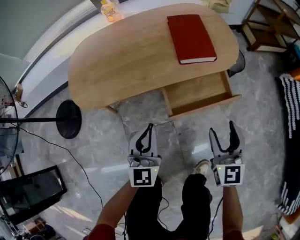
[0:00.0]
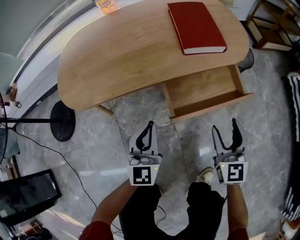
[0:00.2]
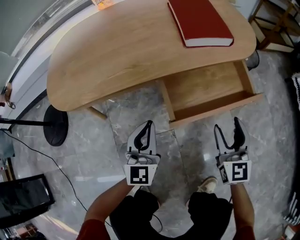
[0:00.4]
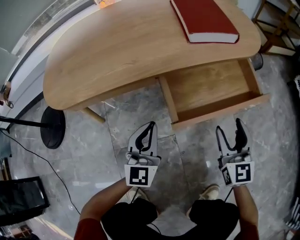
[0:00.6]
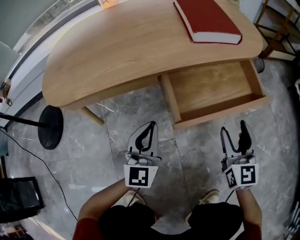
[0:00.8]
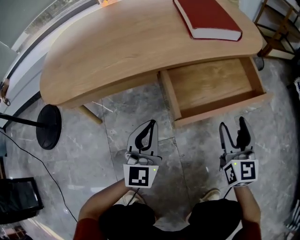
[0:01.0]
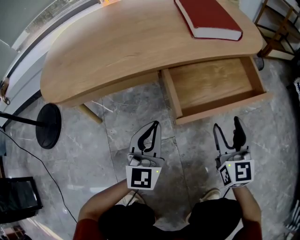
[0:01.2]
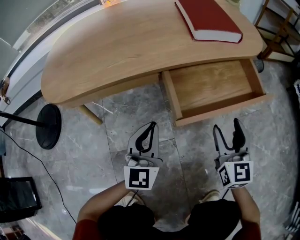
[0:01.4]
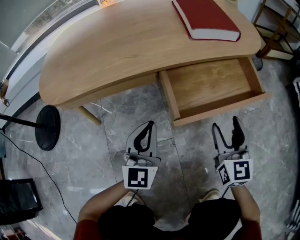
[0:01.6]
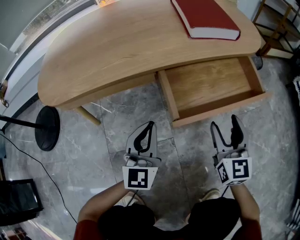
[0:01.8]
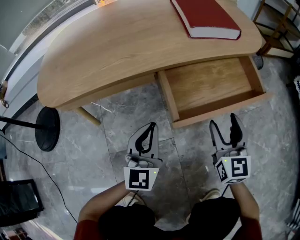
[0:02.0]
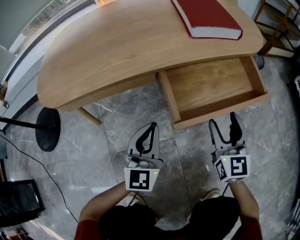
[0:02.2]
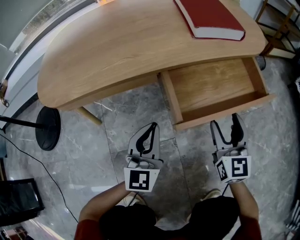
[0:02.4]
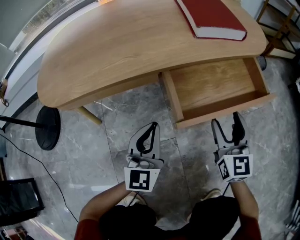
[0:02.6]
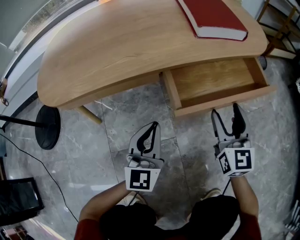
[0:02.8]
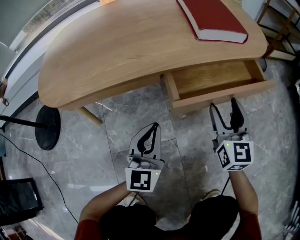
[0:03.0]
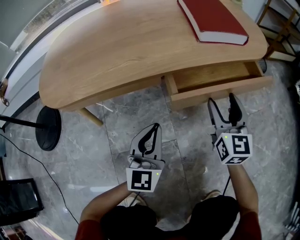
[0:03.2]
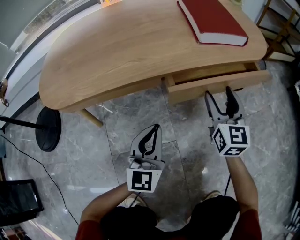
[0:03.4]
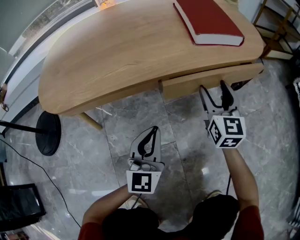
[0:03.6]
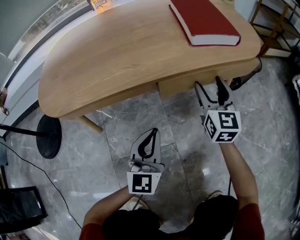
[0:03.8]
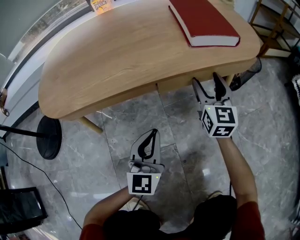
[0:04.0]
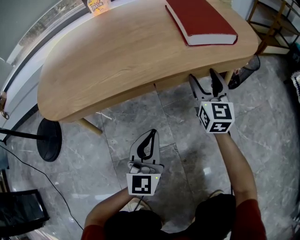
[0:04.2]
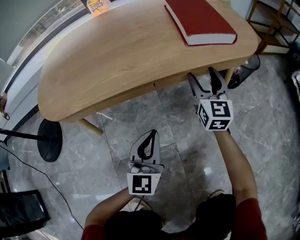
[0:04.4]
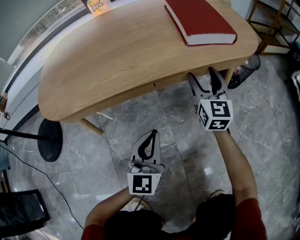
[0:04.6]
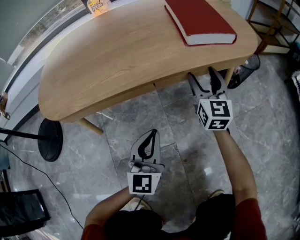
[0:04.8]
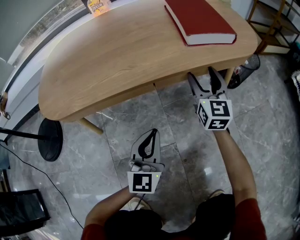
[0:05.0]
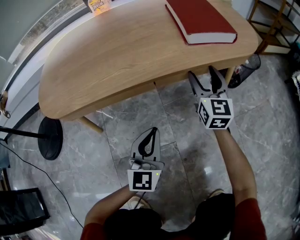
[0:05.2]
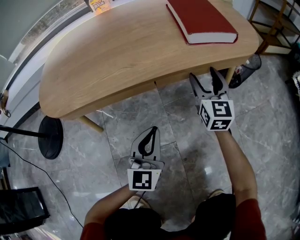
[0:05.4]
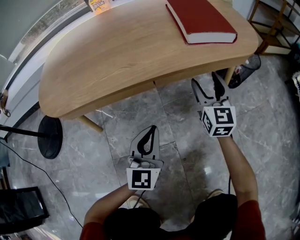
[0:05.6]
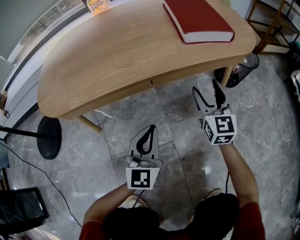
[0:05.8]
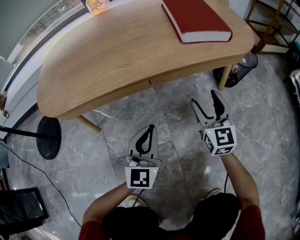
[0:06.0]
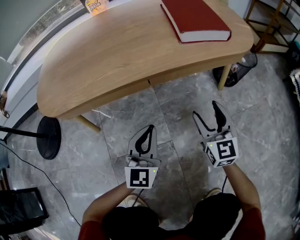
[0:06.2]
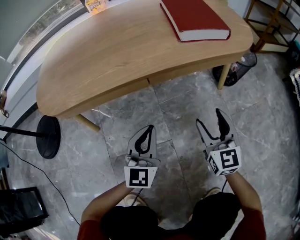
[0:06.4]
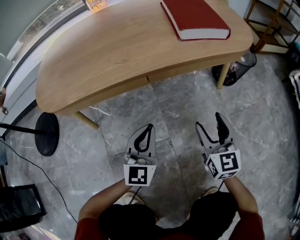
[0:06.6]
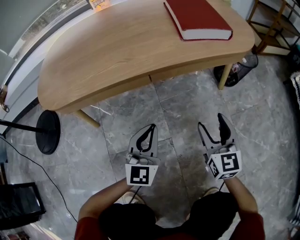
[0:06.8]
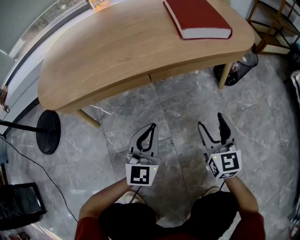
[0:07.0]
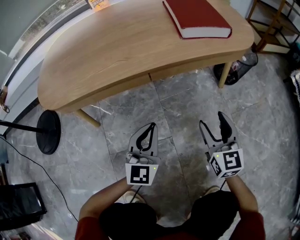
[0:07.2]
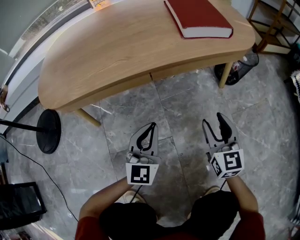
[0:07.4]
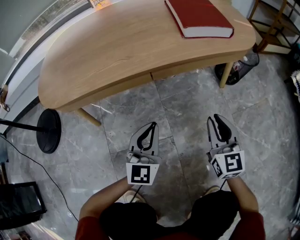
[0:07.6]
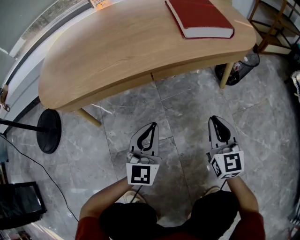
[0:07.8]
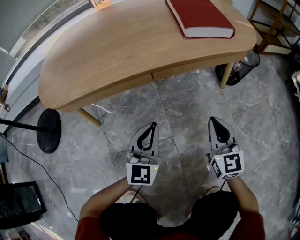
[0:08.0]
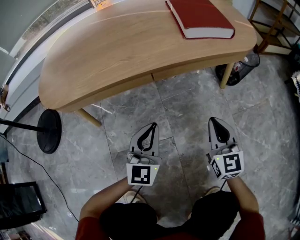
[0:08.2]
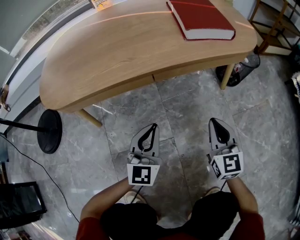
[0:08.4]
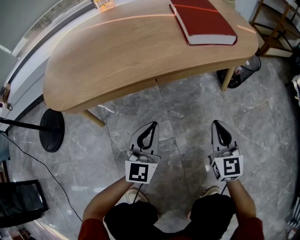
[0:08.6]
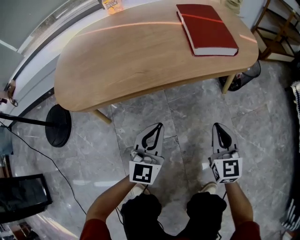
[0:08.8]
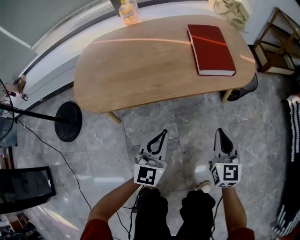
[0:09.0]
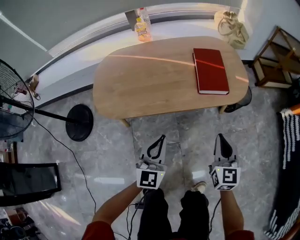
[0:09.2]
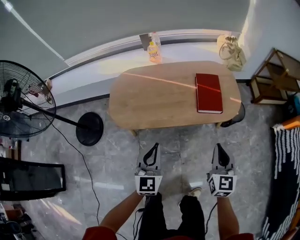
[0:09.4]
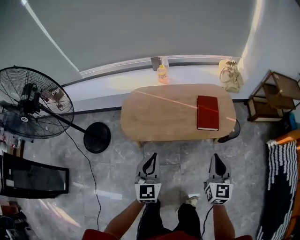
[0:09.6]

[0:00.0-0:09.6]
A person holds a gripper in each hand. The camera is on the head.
0:00.0 to 0:01.6: Both grippers move downward, some 25 cm.
0:01.6 to 0:03.2: The right gripper is displaced forward by approximately 10 cm.
0:03.2 to 0:04.8: The right gripper goes approximately 10 cm forward.
0:04.8 to 0:06.4: The right gripper travels backward by roughly 15 cm.
0:06.4 to 0:08.0: The right gripper closes.
0:08.0 to 0:09.6: The grippers both shift upward by some 60 cm. The left gripper changes its angle by about 20 degrees.

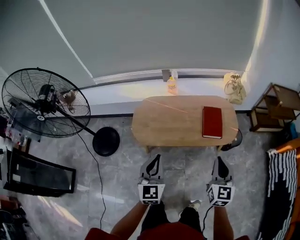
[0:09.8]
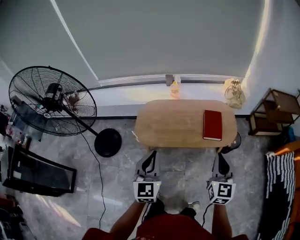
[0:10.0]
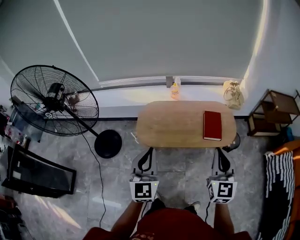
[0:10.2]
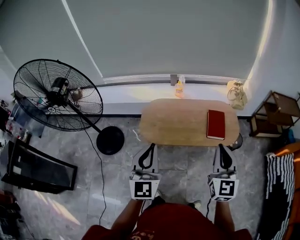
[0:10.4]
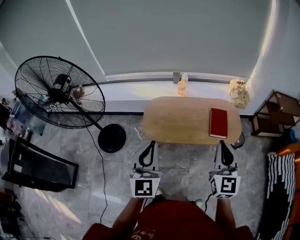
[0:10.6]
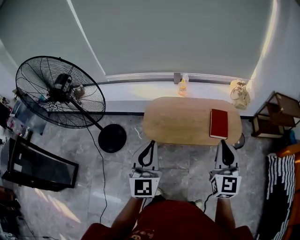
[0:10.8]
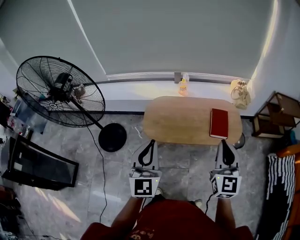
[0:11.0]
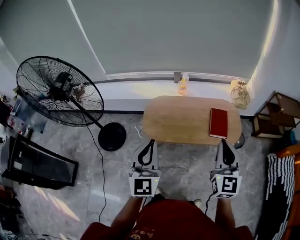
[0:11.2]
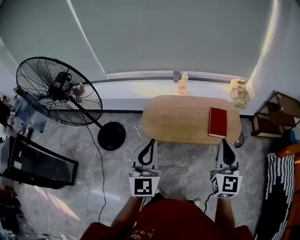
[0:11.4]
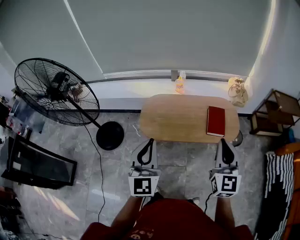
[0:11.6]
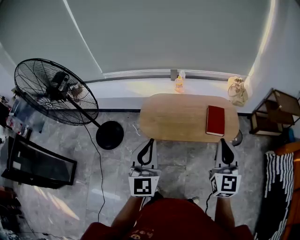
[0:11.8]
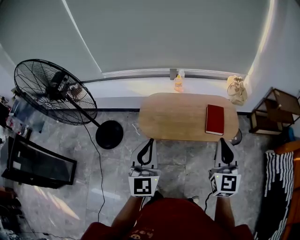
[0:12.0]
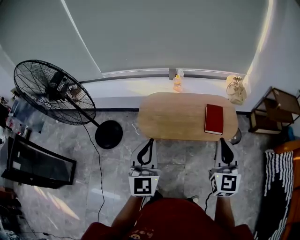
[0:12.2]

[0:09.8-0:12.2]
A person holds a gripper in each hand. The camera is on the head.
0:09.8 to 0:11.0: Both grippers travel together upward and to the left, approximately 15 cm.
0:11.0 to 0:12.2: The grippers move only a little.

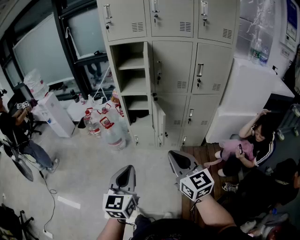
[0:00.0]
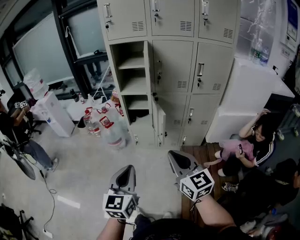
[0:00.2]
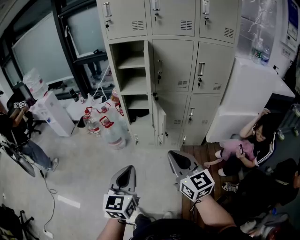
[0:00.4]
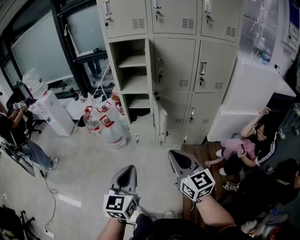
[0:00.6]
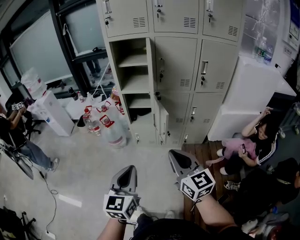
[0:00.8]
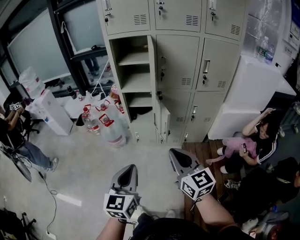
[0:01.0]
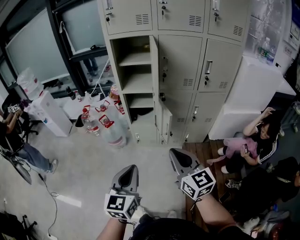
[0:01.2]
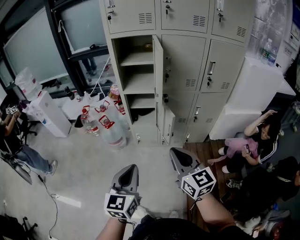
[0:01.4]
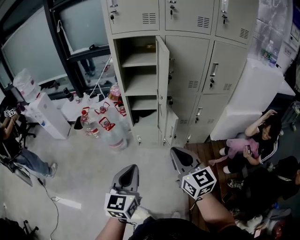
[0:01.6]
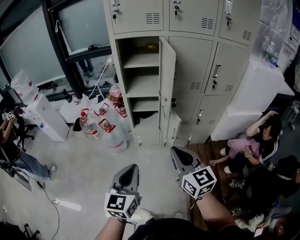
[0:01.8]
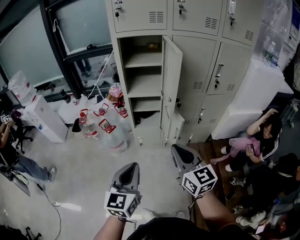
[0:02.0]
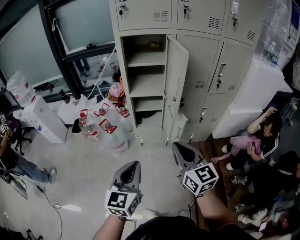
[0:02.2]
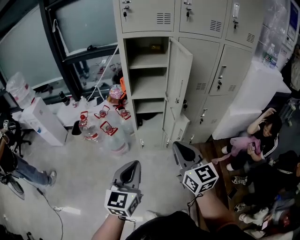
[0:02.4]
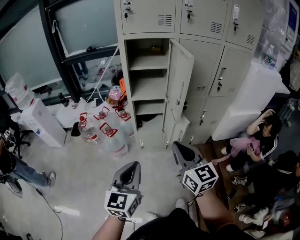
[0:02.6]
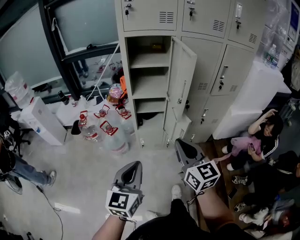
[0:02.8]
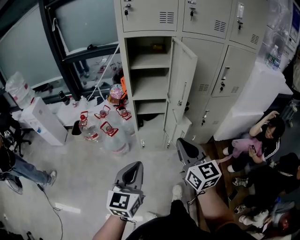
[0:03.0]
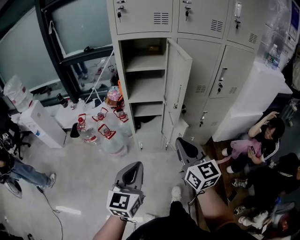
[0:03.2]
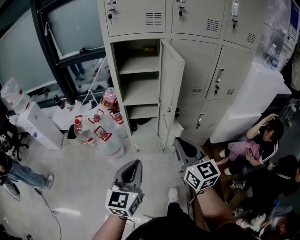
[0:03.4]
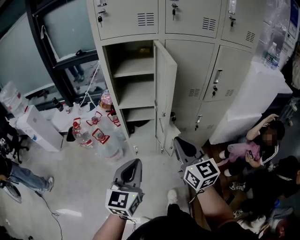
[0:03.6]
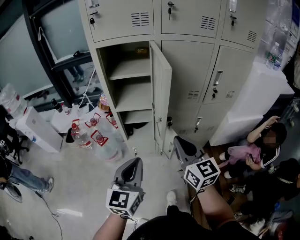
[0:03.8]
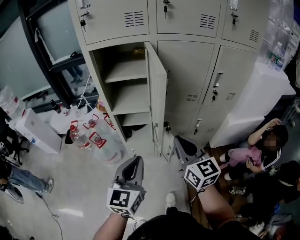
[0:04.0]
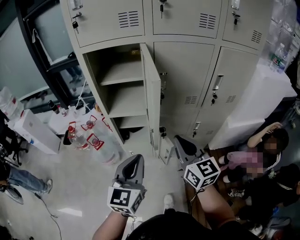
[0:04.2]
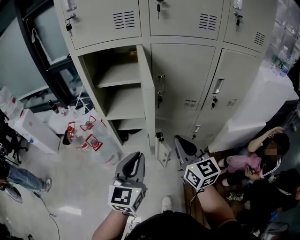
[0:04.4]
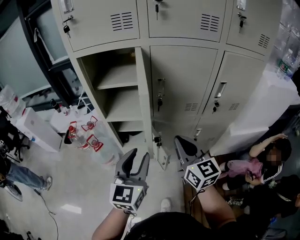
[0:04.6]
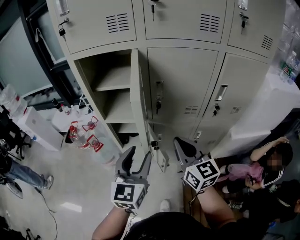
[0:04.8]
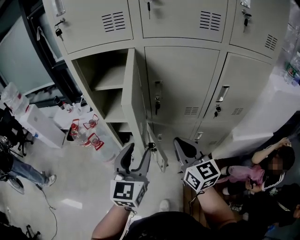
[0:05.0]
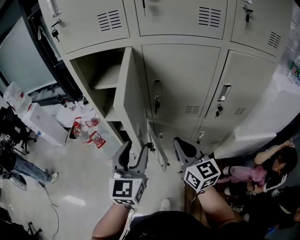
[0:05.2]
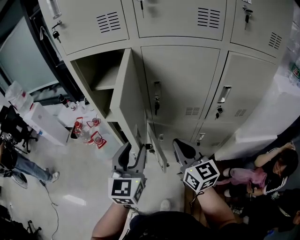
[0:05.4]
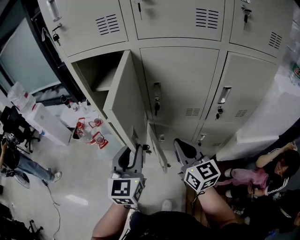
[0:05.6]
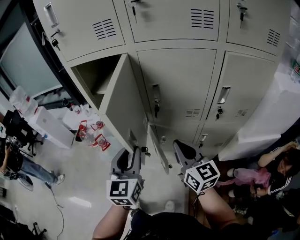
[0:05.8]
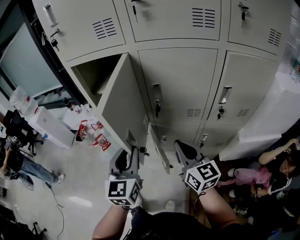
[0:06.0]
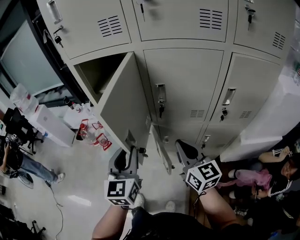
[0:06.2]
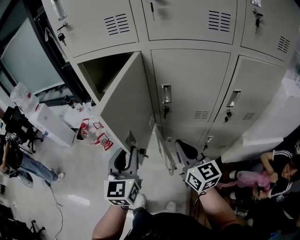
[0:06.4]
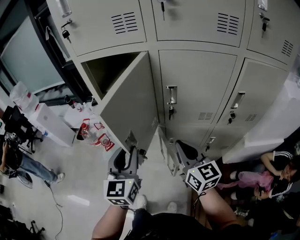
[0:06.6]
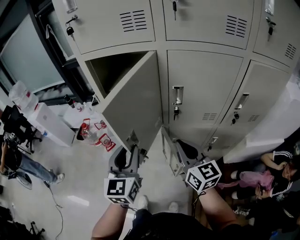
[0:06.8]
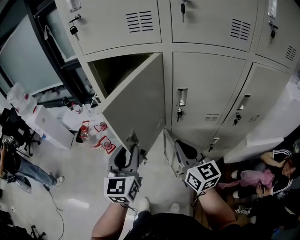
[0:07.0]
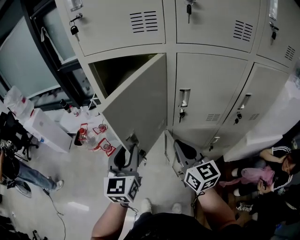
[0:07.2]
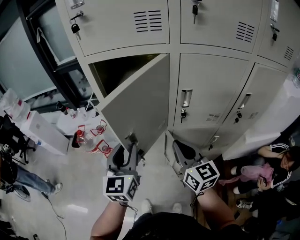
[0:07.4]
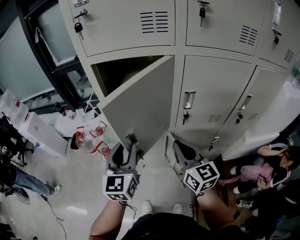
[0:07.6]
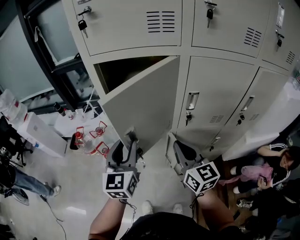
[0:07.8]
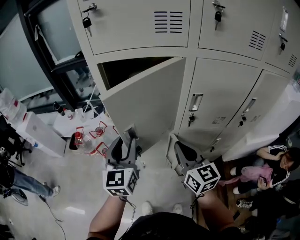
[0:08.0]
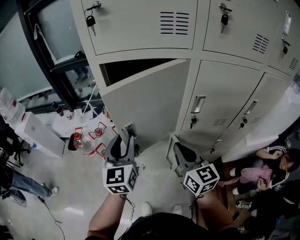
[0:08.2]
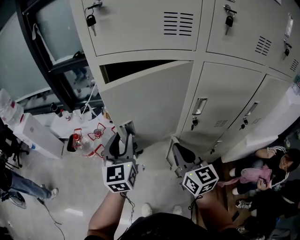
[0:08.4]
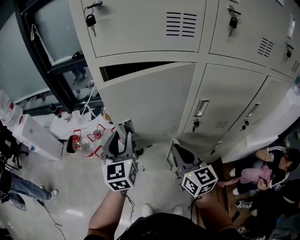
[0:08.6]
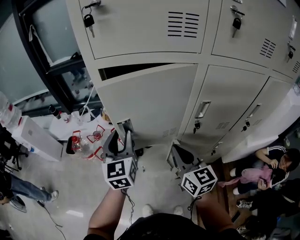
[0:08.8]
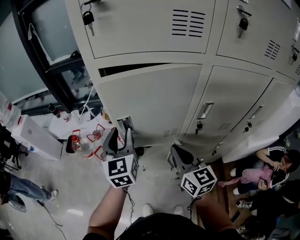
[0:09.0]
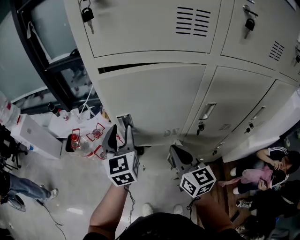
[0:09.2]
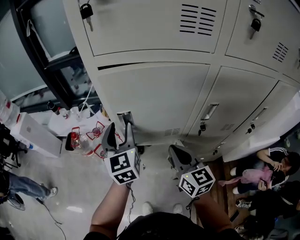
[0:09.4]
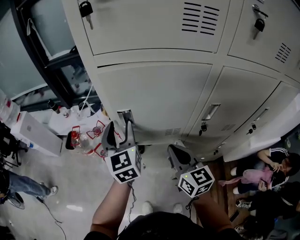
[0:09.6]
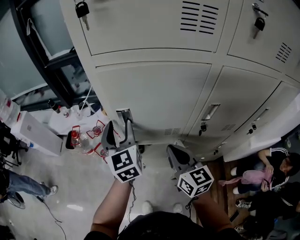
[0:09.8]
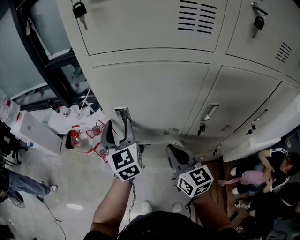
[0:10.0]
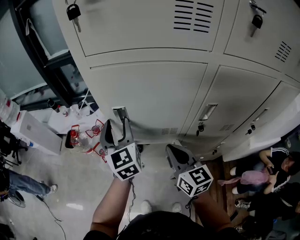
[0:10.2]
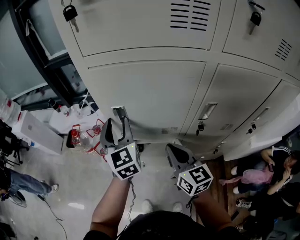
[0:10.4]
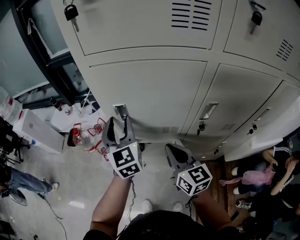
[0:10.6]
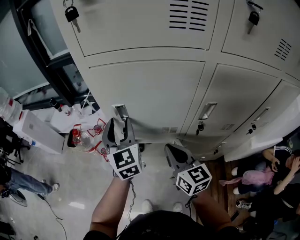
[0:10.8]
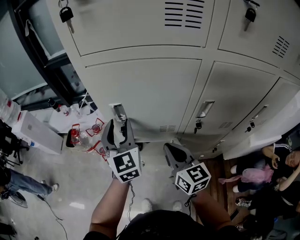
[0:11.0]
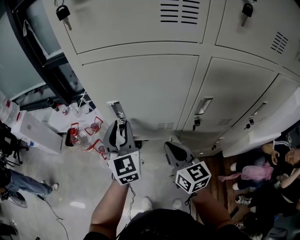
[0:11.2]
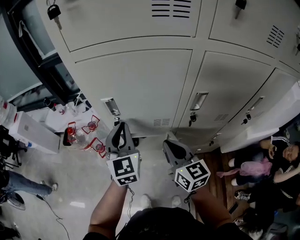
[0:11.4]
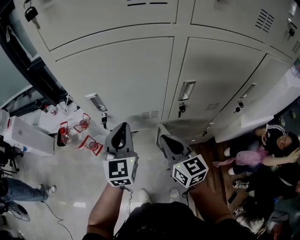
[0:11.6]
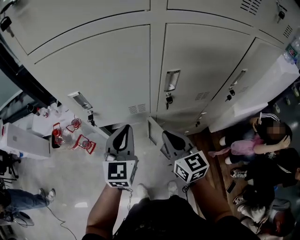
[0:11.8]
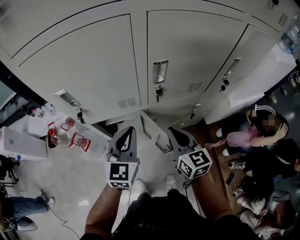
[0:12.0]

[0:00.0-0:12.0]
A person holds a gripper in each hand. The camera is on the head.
0:00.0 to 0:01.6: The two grippers go some 15 cm forward and to the left.
0:01.6 to 0:03.0: The left gripper is displaced to the left and forward by about 10 cm; the right gripper travels forward and to the left by some 10 cm.
0:03.0 to 0:04.4: Both grippers travel together forward and to the right, about 25 cm.
0:04.4 to 0:06.0: The left gripper moves forward, approximately 10 cm, and opens, then closes once more; the right gripper heads to the right and forward, covering approximately 10 cm.
0:06.0 to 0:07.6: The grippers both shift to the left and forward by some 15 cm.
0:07.6 to 0:09.0: The left gripper heads forward, covering about 15 cm; the right gripper goes about 5 cm forward.
0:09.0 to 0:10.4: The grippers make only small movements.
0:10.4 to 0:12.0: The left gripper moves approximately 25 cm, changes its angle by some 40 degrees, and closes its fingers. Meanwhile the right gripper ends up some 15 cm from where it was.
